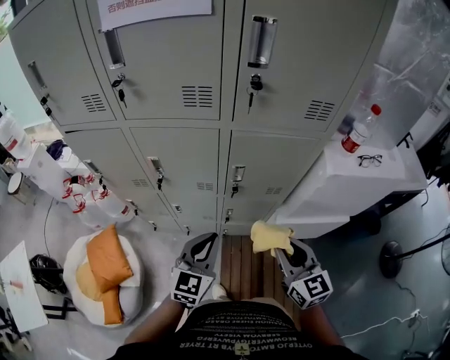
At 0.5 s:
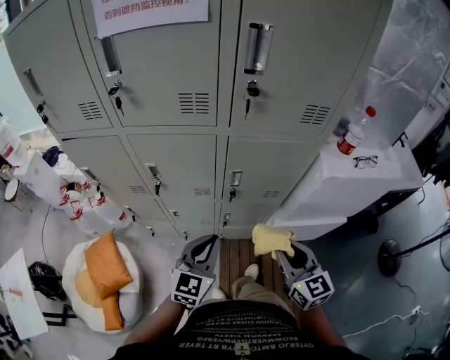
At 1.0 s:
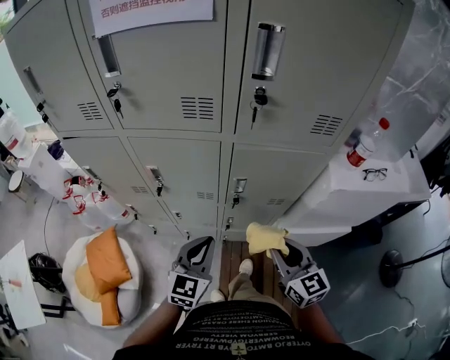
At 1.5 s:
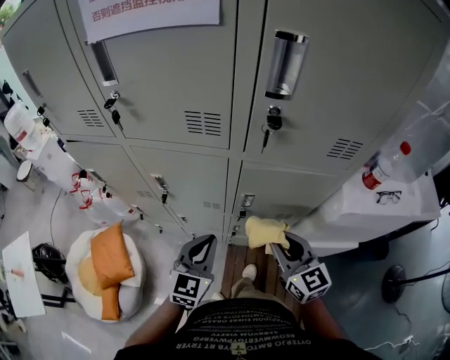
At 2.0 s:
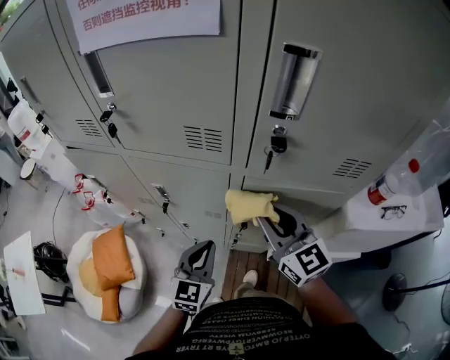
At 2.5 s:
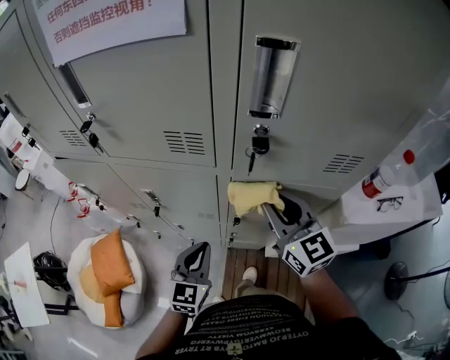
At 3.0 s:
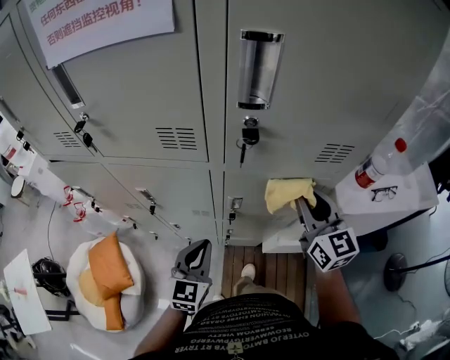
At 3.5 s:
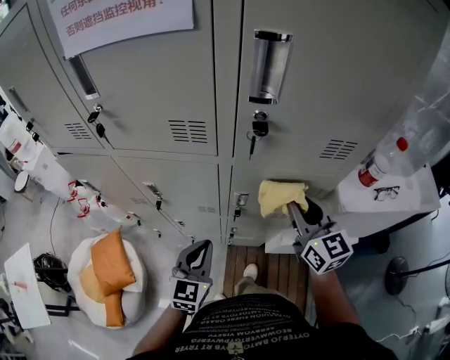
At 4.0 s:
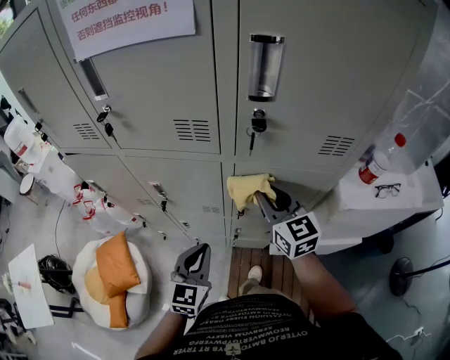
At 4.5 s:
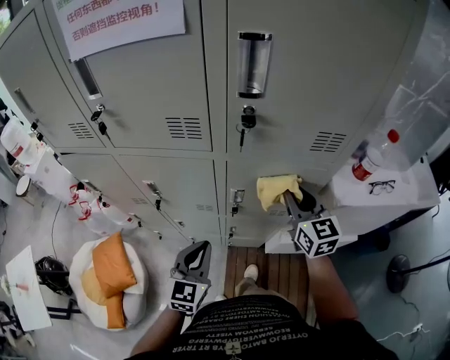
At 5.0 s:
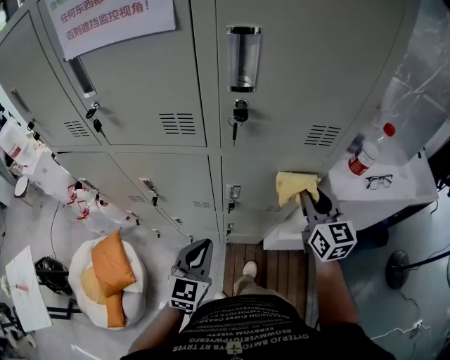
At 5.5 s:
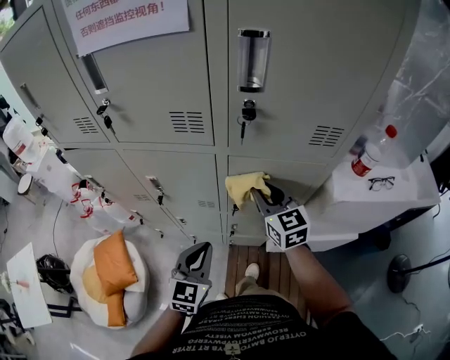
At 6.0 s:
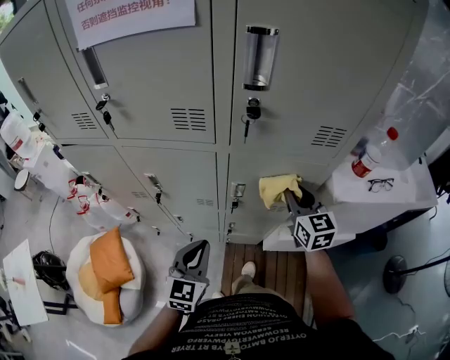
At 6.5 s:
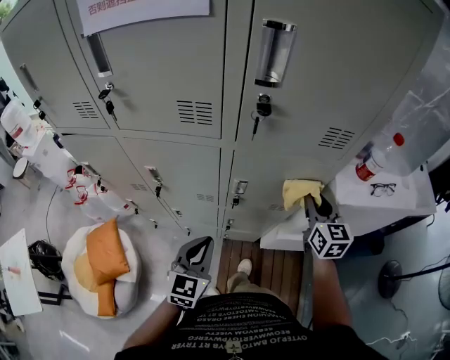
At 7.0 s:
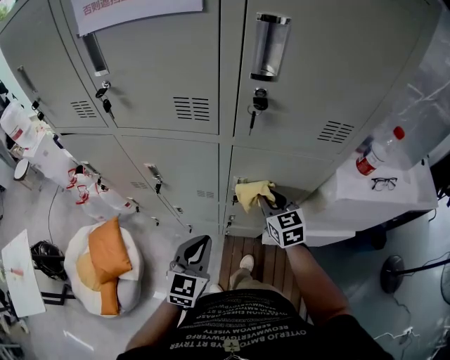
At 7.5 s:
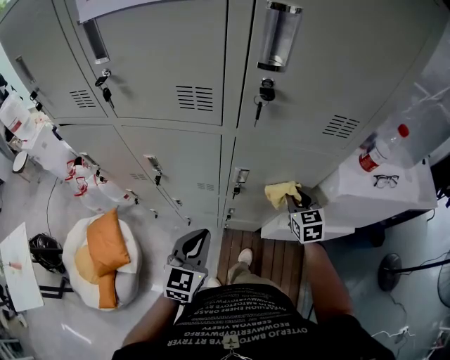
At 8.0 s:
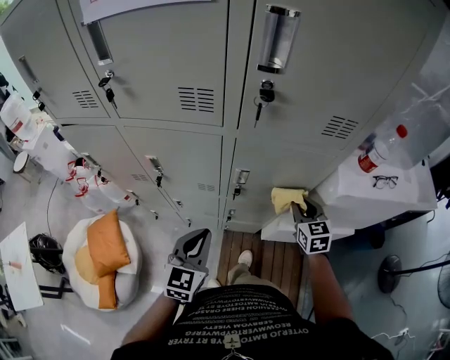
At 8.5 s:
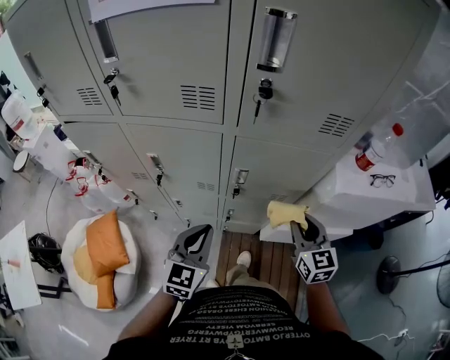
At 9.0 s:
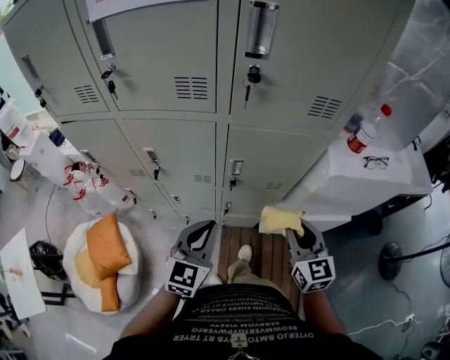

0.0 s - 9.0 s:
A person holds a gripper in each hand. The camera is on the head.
0.0 s - 2.0 s: The left gripper moves forward, some 10 cm; the right gripper moves forward and upward, about 25 cm, and turns by about 20 degrees.
2.0 s - 4.5 s: The right gripper swings left and right, some 15 cm each way, with 2 reversals, and rotates roughly 20 degrees.
4.5 s - 7.0 s: The right gripper swings left and right, approximately 15 cm each way, with 3 reversals.
7.0 s - 9.0 s: The right gripper goes about 20 cm backward and to the right. The left gripper moves some 5 cm.

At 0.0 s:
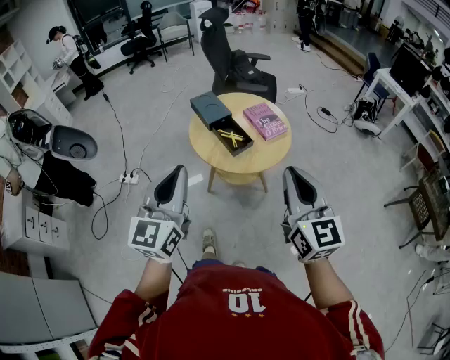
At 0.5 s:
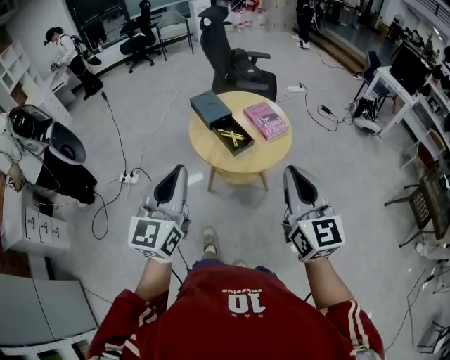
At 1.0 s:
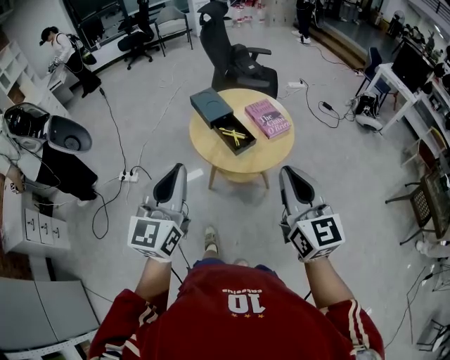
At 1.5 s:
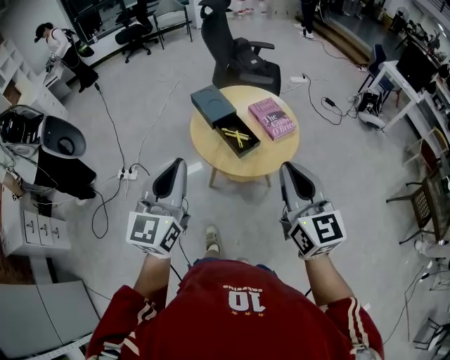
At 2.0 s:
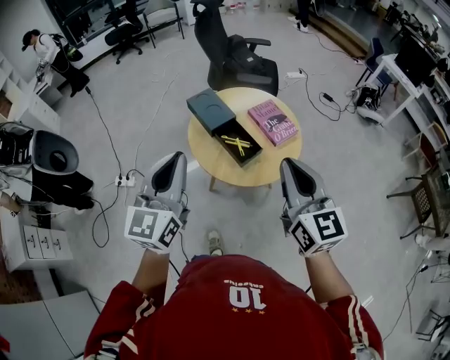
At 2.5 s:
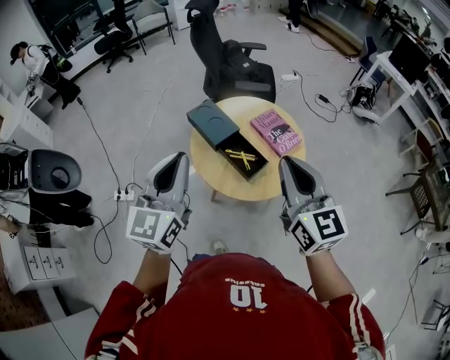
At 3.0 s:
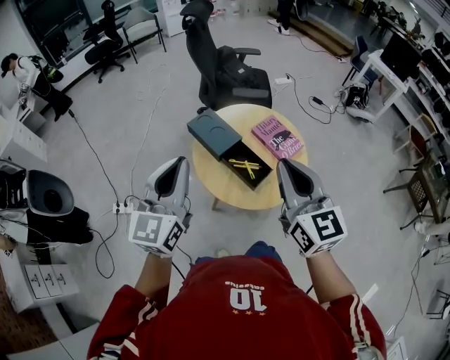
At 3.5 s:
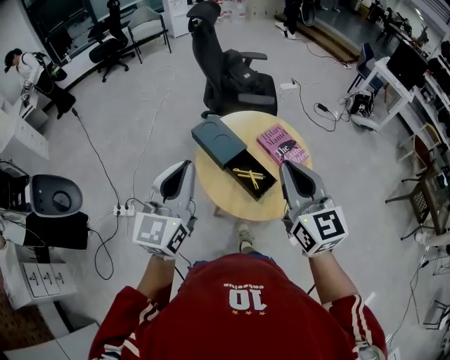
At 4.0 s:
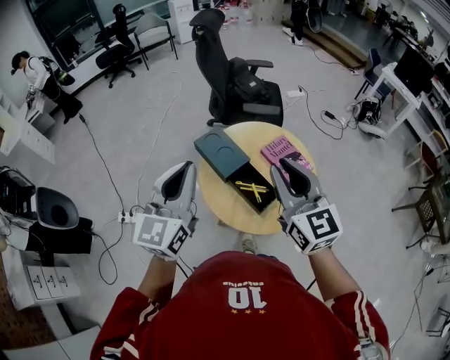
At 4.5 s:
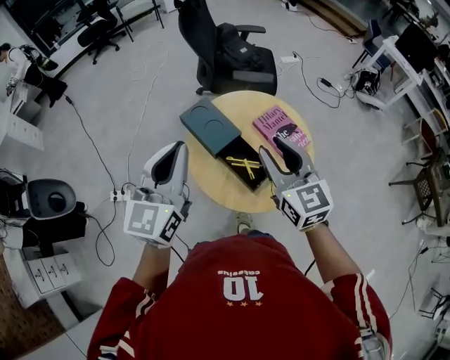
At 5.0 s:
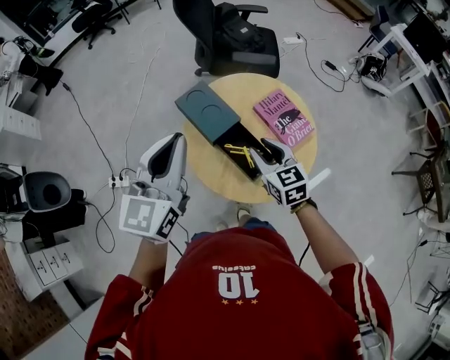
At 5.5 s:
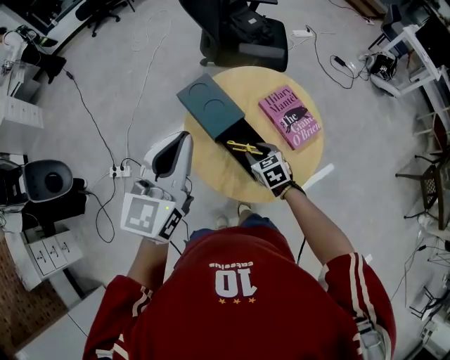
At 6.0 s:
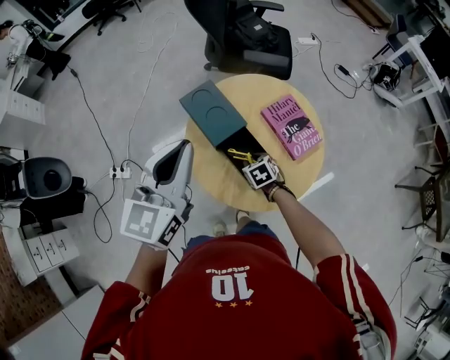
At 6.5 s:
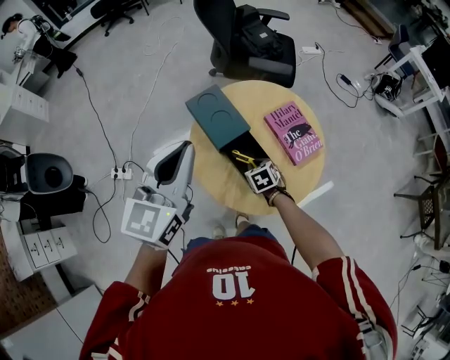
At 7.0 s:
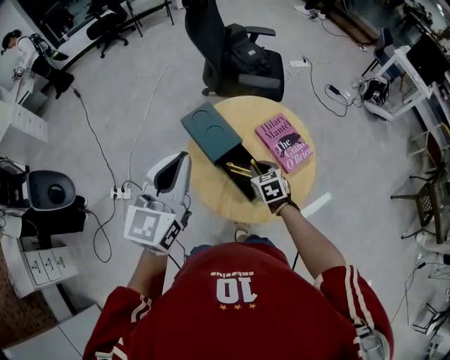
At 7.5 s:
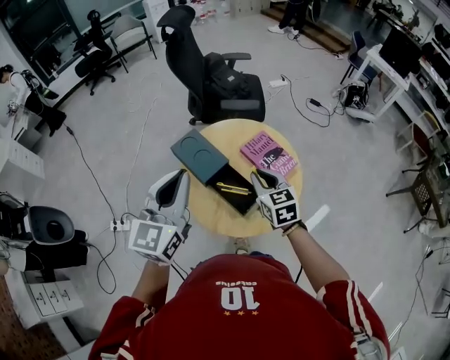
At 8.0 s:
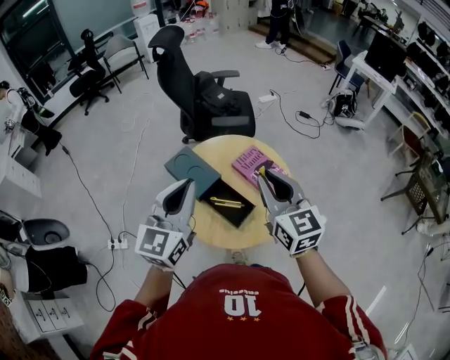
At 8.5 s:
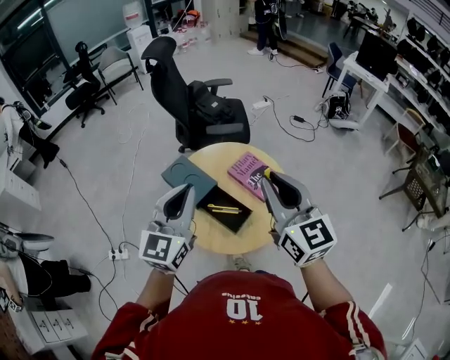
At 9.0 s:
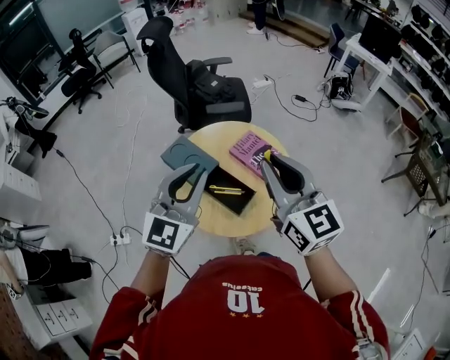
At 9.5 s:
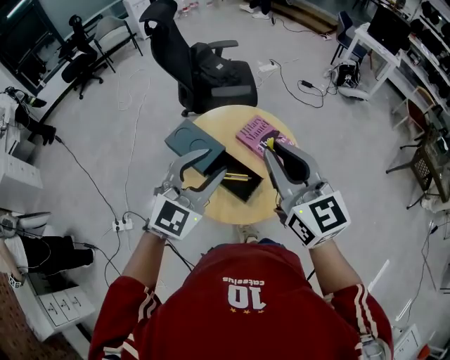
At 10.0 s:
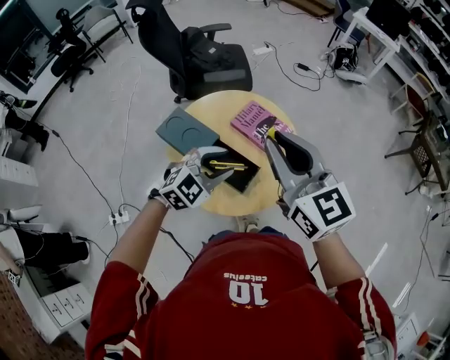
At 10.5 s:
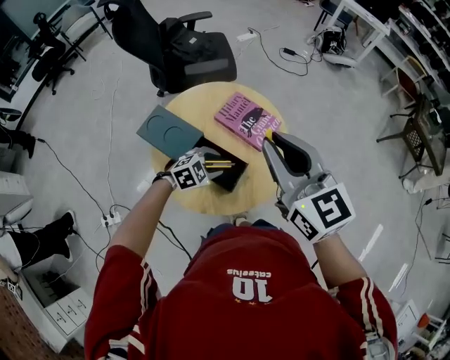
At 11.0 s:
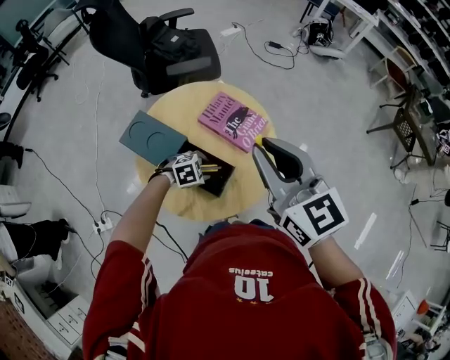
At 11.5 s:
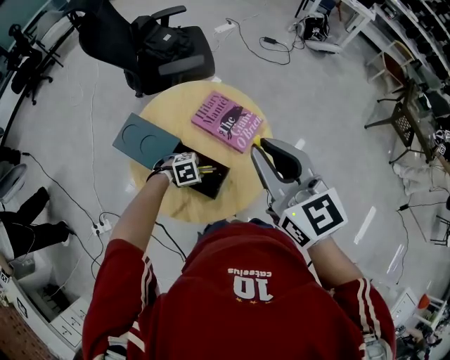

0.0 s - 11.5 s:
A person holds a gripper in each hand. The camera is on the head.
0.0 s - 2.0 s: Both grippers travel together forward, approximately 15 cm.
2.0 s - 4.0 s: The left gripper shifts about 20 cm forward. Meanwhile the right gripper heads forward and to the left, covering roughly 20 cm.
4.0 s - 6.0 s: The right gripper travels downward by approximately 50 cm, and angles its fingers downward, by about 60 degrees, while the left gripper travels downward and forward by roughly 10 cm.
6.0 s - 7.5 s: The left gripper moves about 5 cm; the right gripper is displaced upward by some 25 cm, and tips its fingers upward by about 30 degrees.
7.5 s - 9.5 s: The right gripper shifts roughly 20 cm upward, and turns by some 30 degrees. The left gripper shifts roughly 10 cm to the right, turns by roughly 30 degrees, and opens.
9.5 s - 11.5 s: The left gripper goes roughly 40 cm downward, and tips its fingers downward by roughly 60 degrees; the right gripper moves roughly 10 cm.

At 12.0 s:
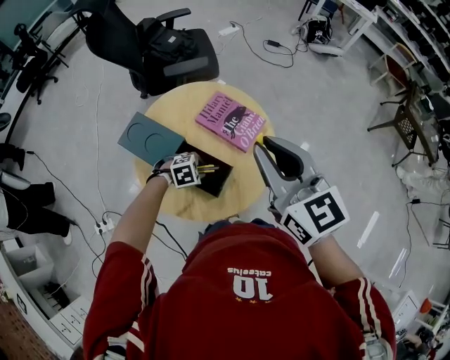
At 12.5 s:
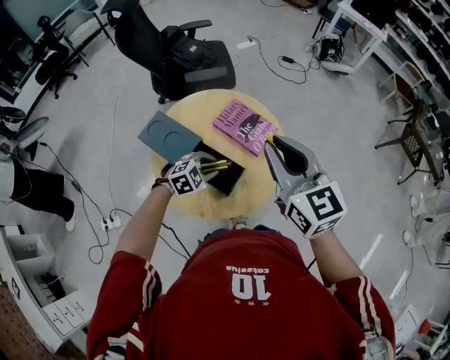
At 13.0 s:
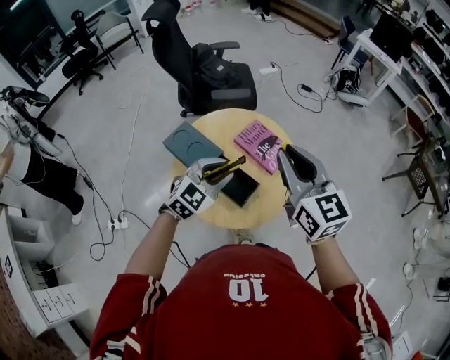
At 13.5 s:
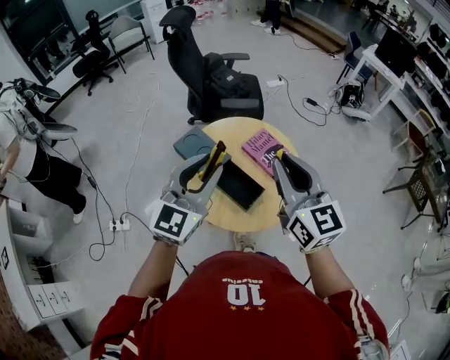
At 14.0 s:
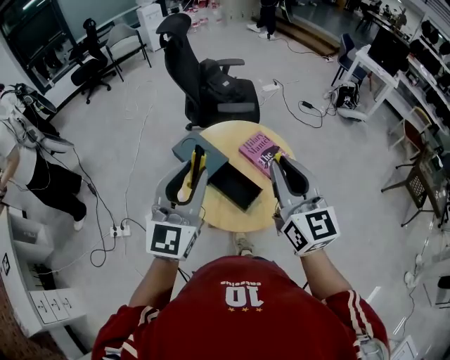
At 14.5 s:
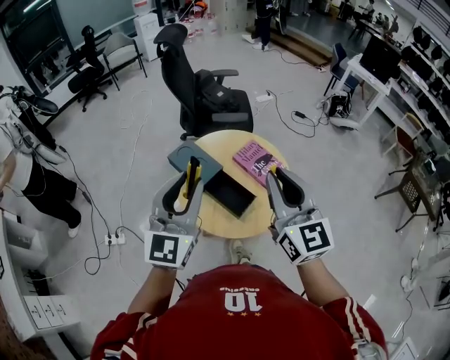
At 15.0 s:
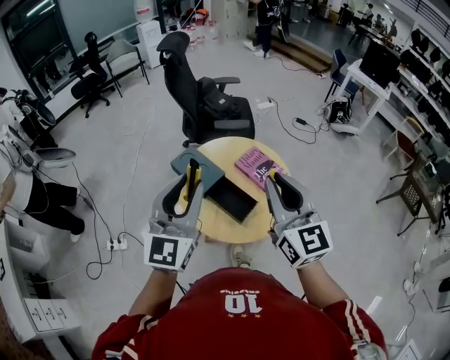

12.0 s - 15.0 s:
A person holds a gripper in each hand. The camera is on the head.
12.0 s - 13.5 s: The right gripper changes place by roughly 10 cm; the left gripper heads upward, covering roughly 40 cm, and points its fingers roughly 70 degrees further upward.
13.5 s - 15.0 s: The right gripper heads backward, covering about 5 cm; the left gripper travels upward and backward by some 10 cm.

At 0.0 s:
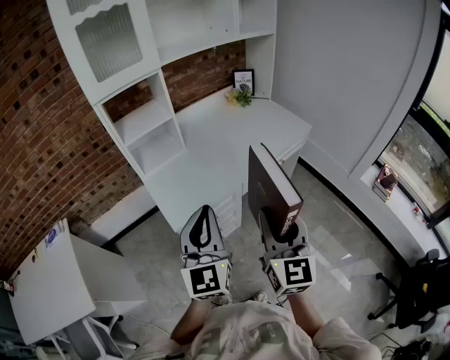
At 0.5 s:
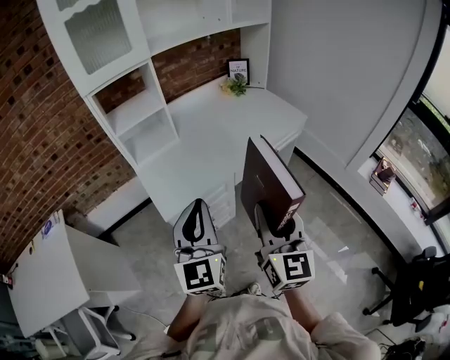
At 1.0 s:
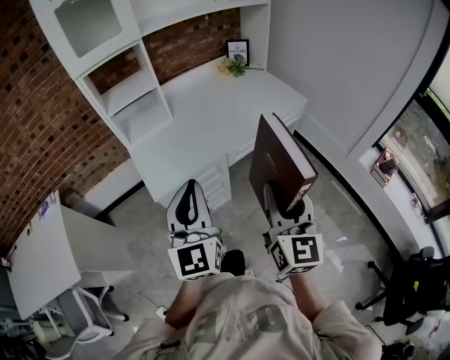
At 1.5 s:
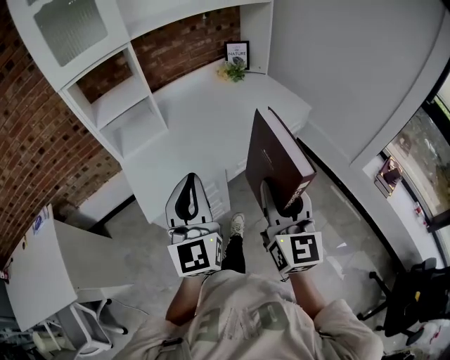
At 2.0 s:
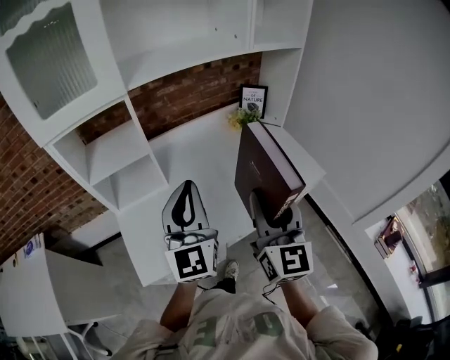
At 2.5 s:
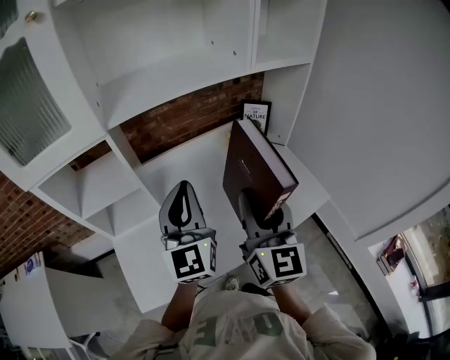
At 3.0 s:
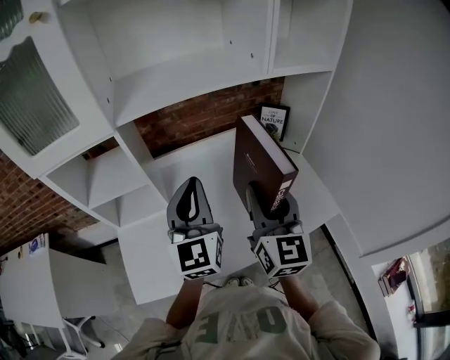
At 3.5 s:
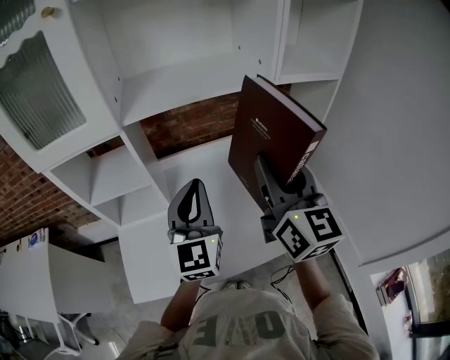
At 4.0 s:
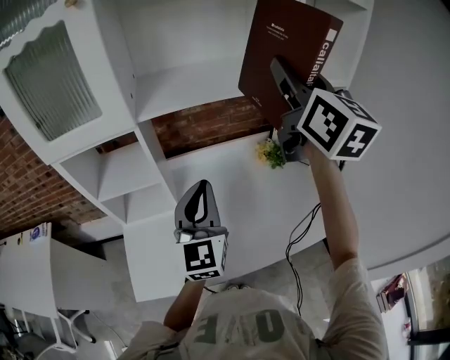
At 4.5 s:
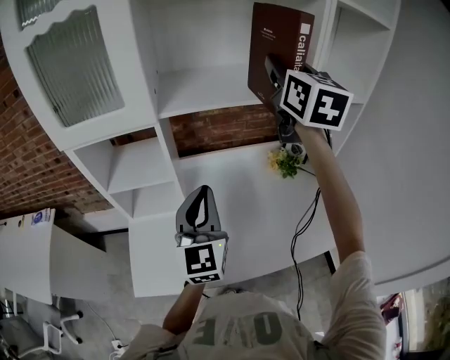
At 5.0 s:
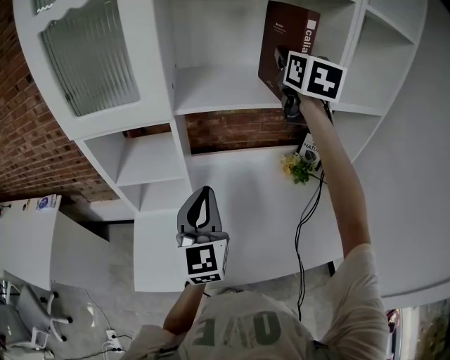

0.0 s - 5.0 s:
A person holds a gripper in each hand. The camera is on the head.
0.0 s - 2.5 s: Both grippers are carried forward, approximately 40 cm.
2.5 s - 5.0 s: The left gripper is displaced to the left by roughly 5 cm. The right gripper heads forward and upward, covering roughly 40 cm.
